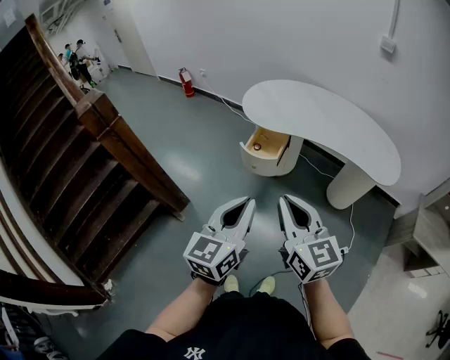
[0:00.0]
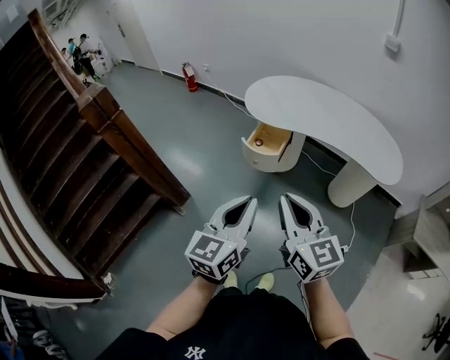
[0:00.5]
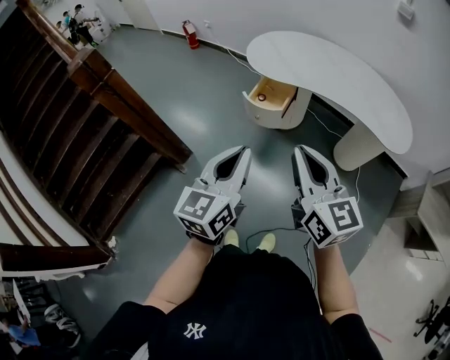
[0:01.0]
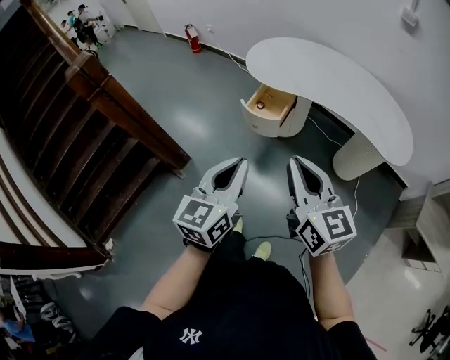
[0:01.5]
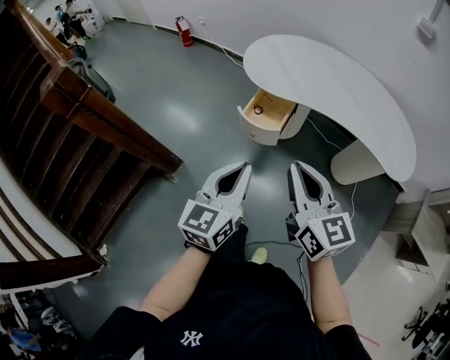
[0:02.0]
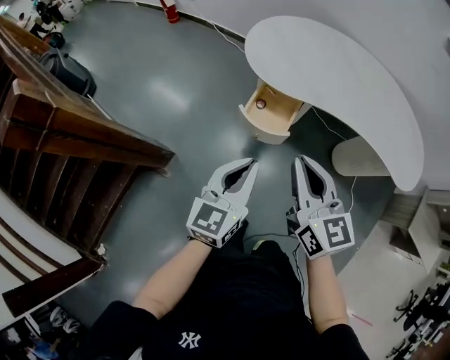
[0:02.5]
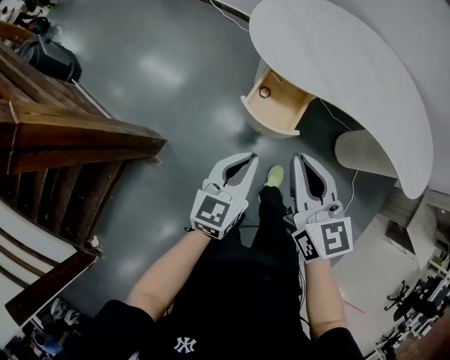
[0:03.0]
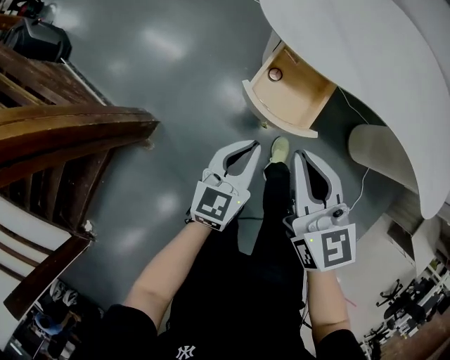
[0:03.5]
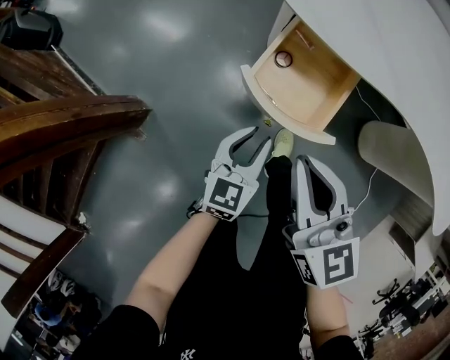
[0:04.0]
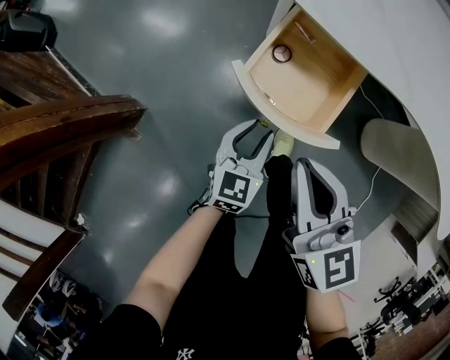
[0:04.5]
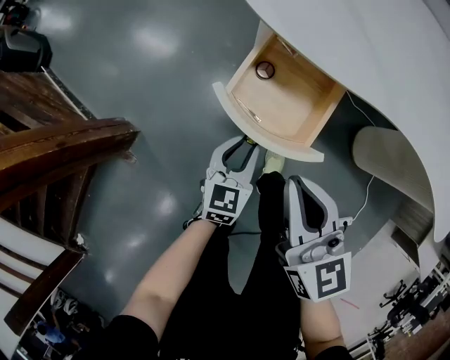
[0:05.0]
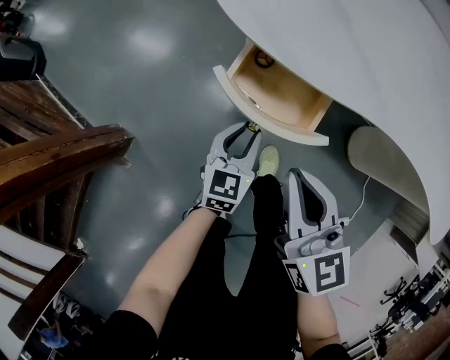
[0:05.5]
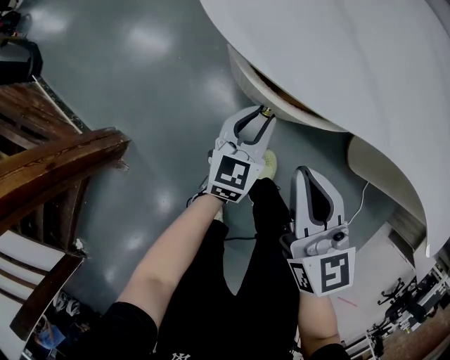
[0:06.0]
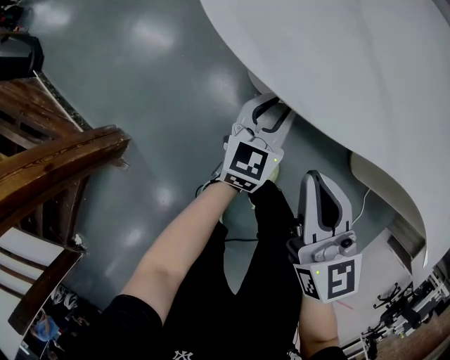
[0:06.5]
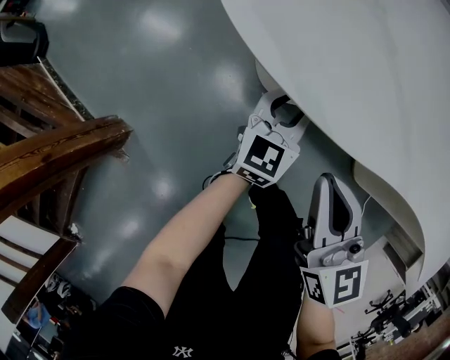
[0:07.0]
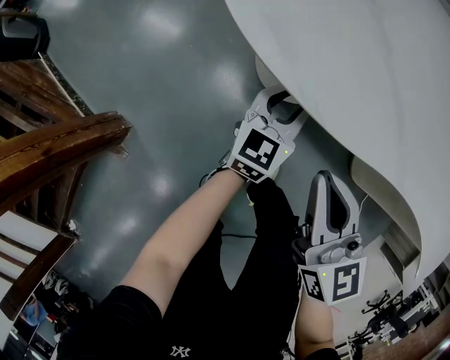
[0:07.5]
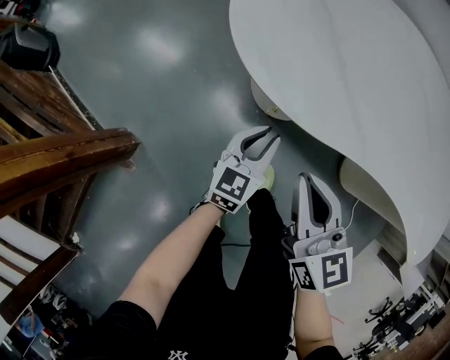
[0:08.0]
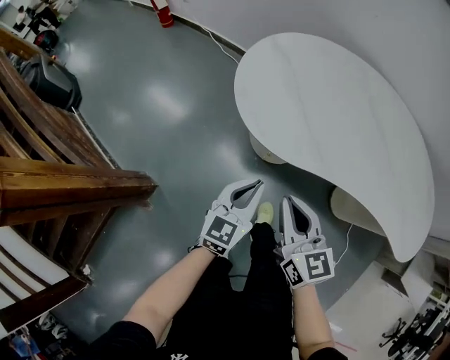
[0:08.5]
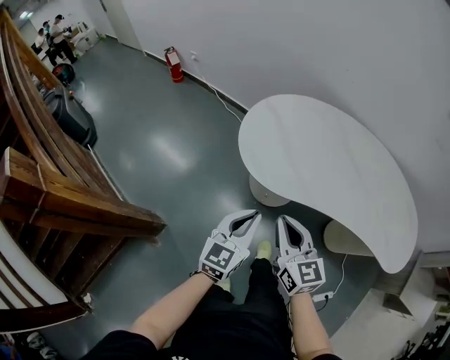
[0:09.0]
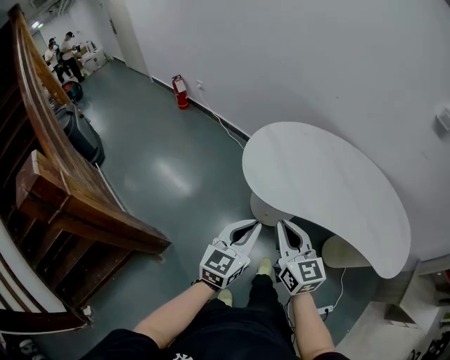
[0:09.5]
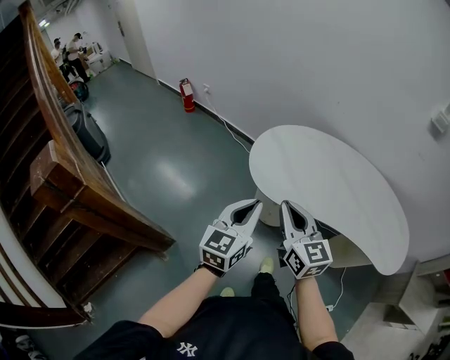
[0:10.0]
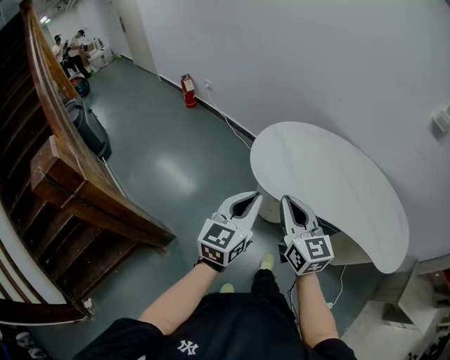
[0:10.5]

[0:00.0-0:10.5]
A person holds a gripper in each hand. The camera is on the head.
0:00.0 to 0:02.0: The right gripper shifts some 15 cm forward. The left gripper is displaced forward and downward by roughly 15 cm.
0:02.0 to 0:04.0: The grippers both shift downward and forward by approximately 50 cm. The left gripper opens up.
0:04.0 to 0:06.5: The left gripper moves forward and to the right, some 25 cm. Meanwhile the right gripper moves forward, to the right and downward, some 15 cm.
0:06.5 to 0:08.5: The right gripper shifts about 15 cm upward; the left gripper heads upward and backward, covering some 25 cm, and closes.
0:08.5 to 0:10.5: Both grippers move upward, roughly 30 cm.

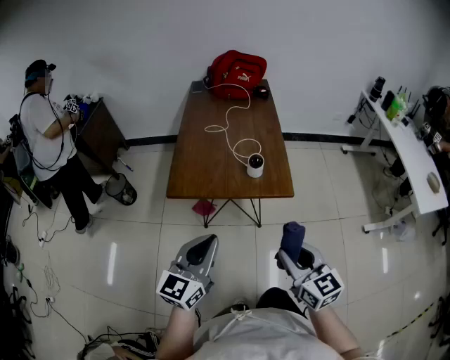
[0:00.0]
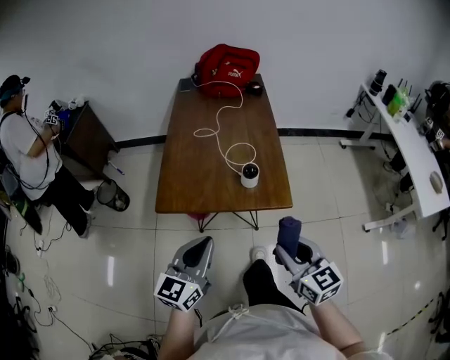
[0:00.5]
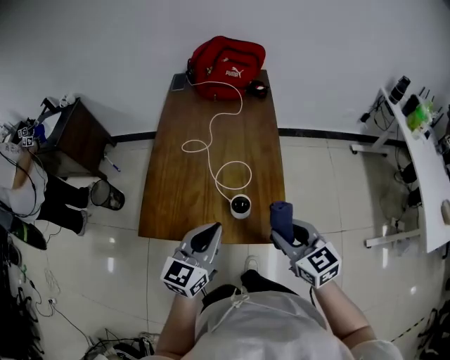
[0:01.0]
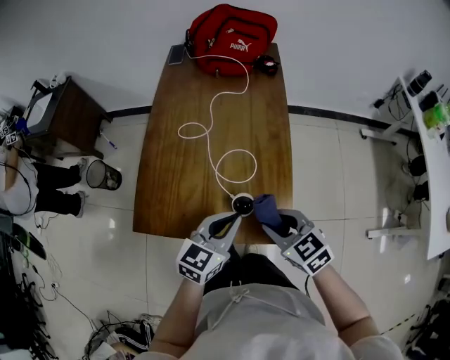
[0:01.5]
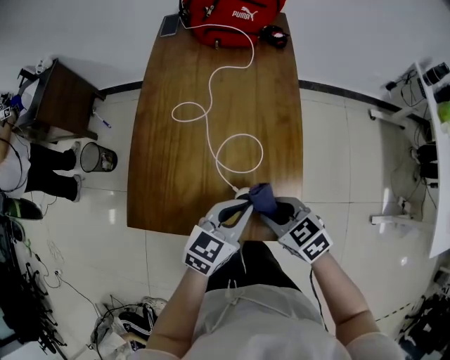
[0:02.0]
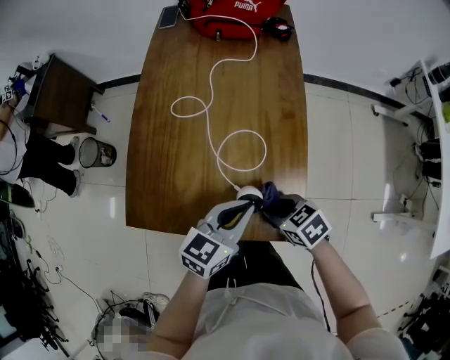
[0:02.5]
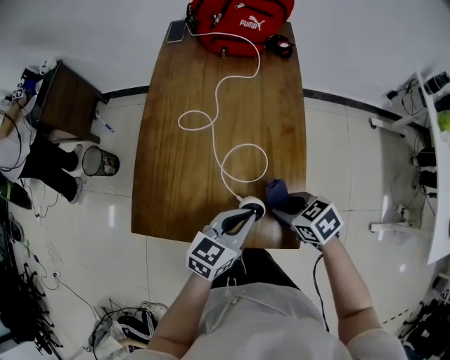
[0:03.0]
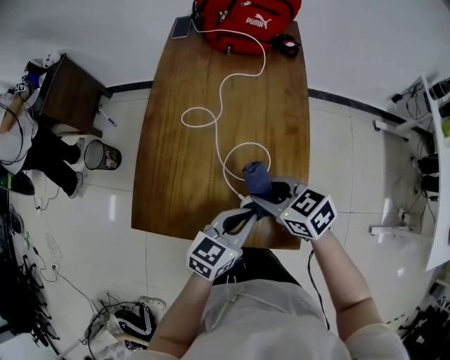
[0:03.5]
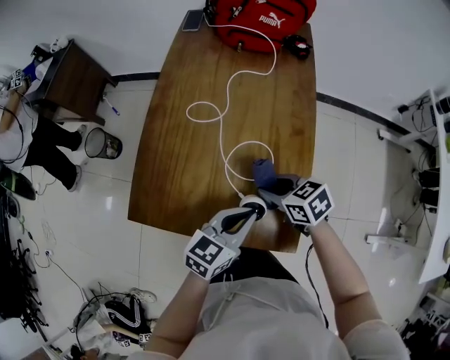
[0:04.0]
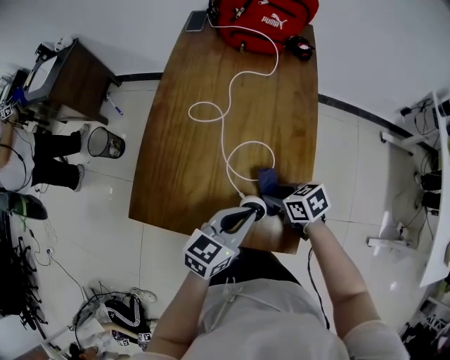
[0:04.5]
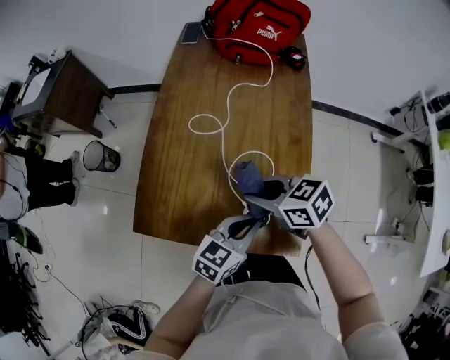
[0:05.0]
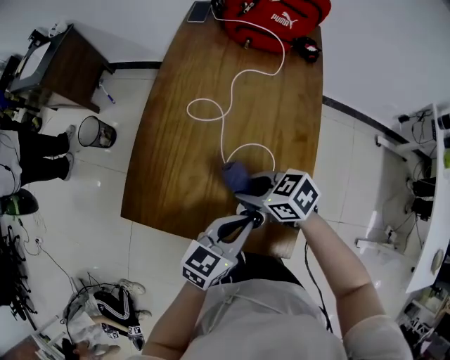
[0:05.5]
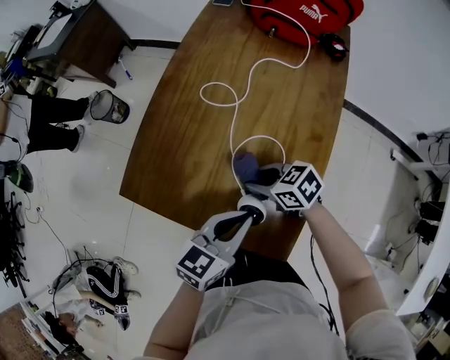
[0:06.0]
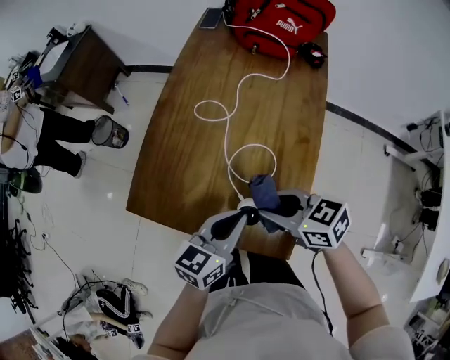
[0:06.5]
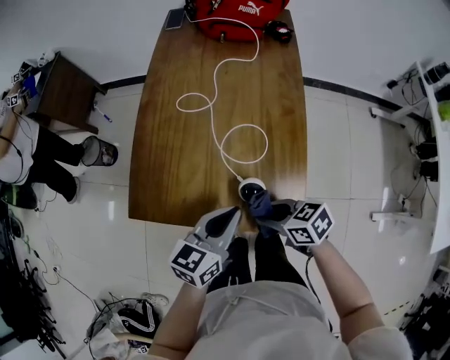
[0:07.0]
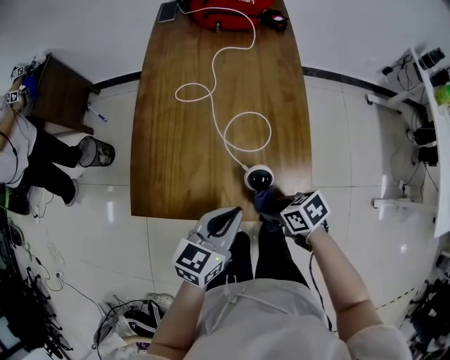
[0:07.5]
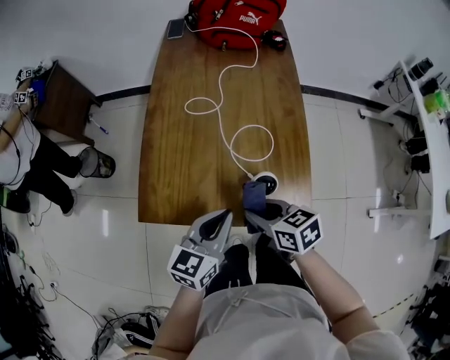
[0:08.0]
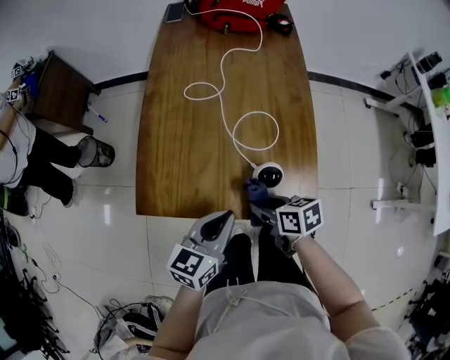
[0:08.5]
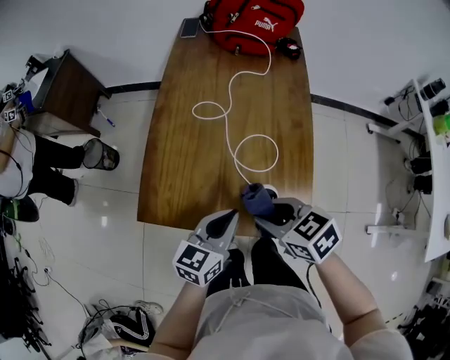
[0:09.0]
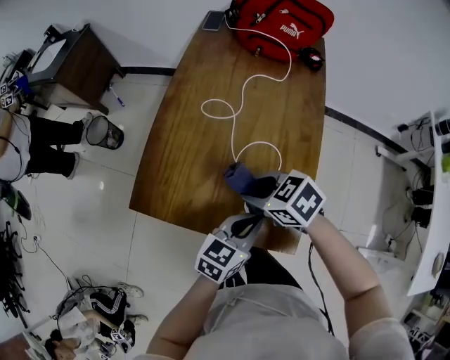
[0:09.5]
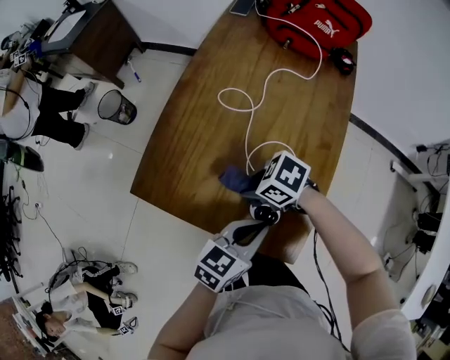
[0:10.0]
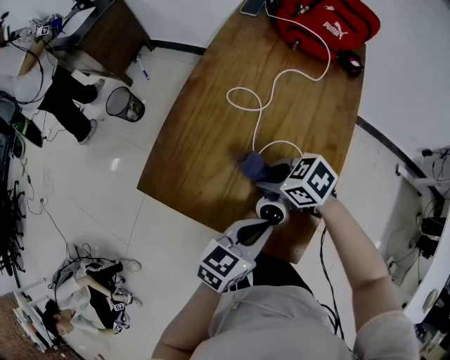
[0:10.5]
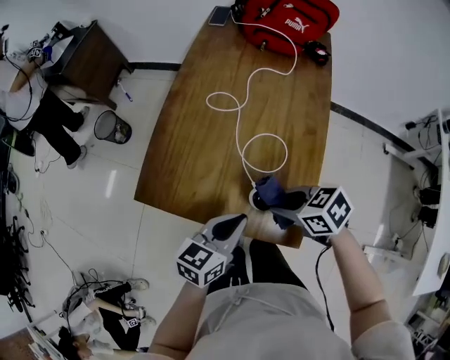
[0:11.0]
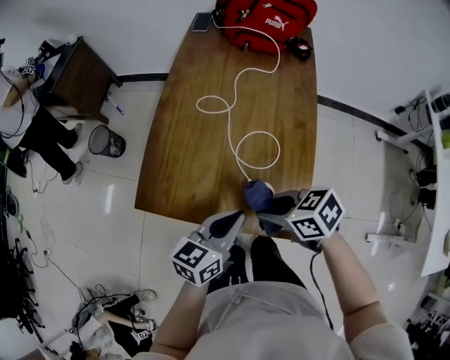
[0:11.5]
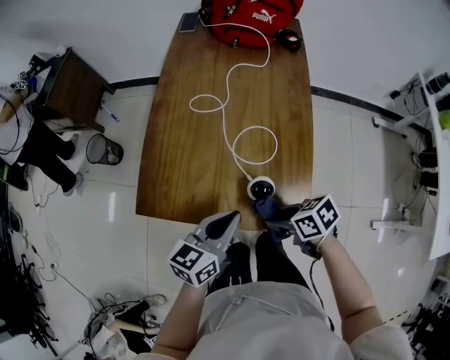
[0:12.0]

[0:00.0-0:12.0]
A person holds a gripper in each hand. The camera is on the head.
0:00.0 to 0:02.0: The right gripper is displaced forward and downward by roughly 40 cm, and changes its angle by some 40 degrees. Meanwhile the left gripper goes some 40 cm forward, to the right and downward, and changes its angle by approximately 30 degrees.
0:02.0 to 0:04.0: The right gripper moves up and down over roughly 10 cm, changing direction 2 times.
0:04.0 to 0:06.0: The right gripper moves up and down over approximately 15 cm, changing direction 2 times, and swivels some 20 degrees.
0:06.0 to 0:08.0: The left gripper changes place by about 10 cm. The right gripper moves up and down over some 15 cm, changing direction 2 times, and rotates approximately 40 degrees.
0:08.0 to 0:10.0: The right gripper goes up and down, approximately 10 cm each way, reversing 2 times, and swivels roughly 60 degrees. Meanwhile the left gripper moves about 15 cm.
0:10.0 to 0:12.0: The left gripper shifts by some 10 cm. Meanwhile the right gripper reaches approximately 10 cm upward, then returns, and rotates approximately 50 degrees.

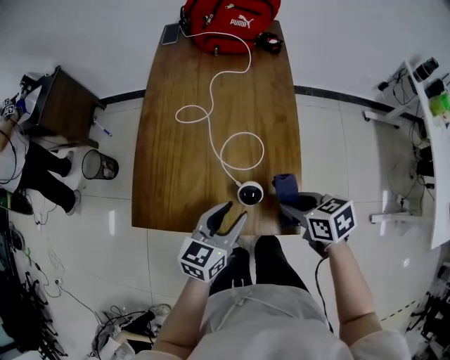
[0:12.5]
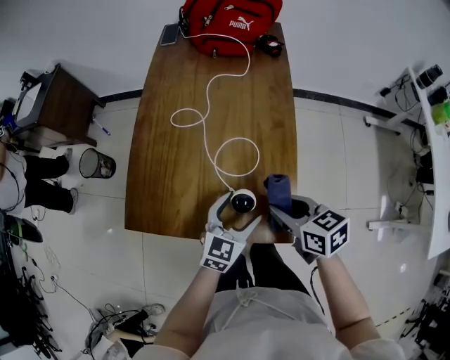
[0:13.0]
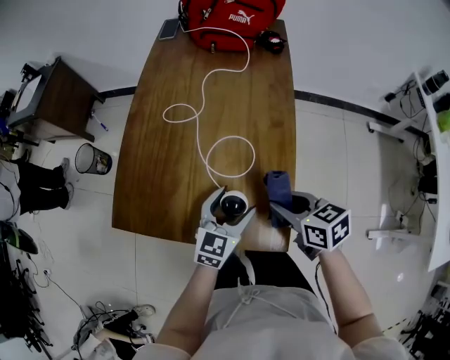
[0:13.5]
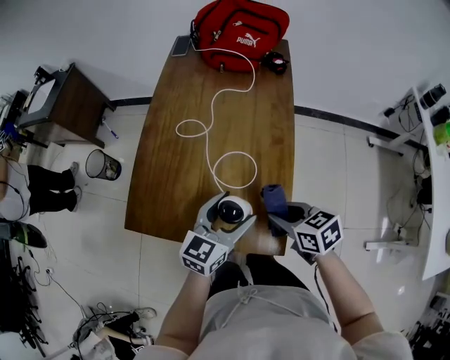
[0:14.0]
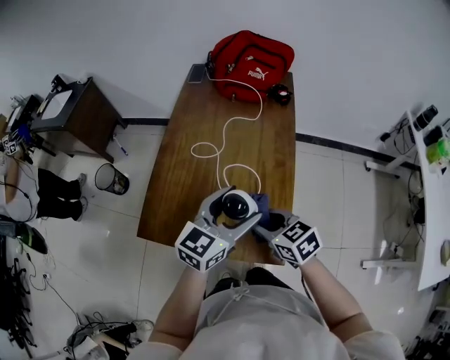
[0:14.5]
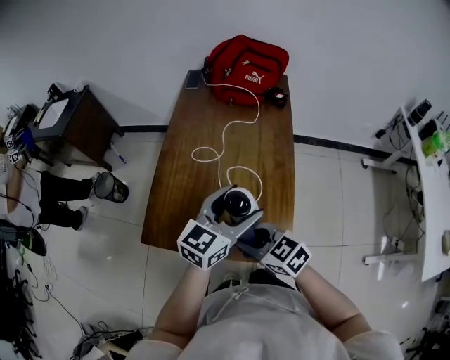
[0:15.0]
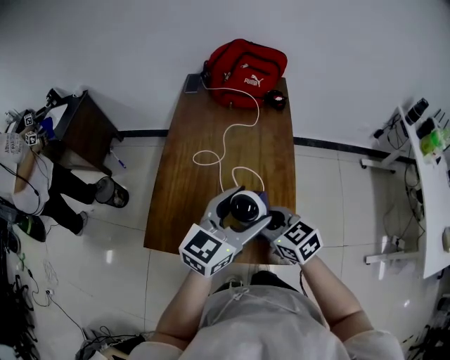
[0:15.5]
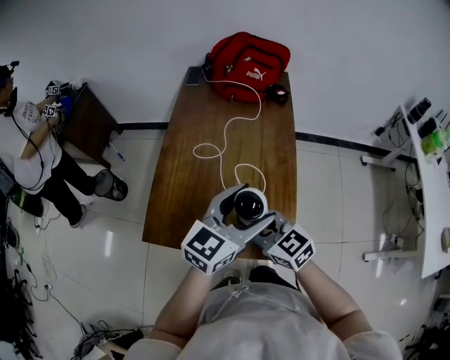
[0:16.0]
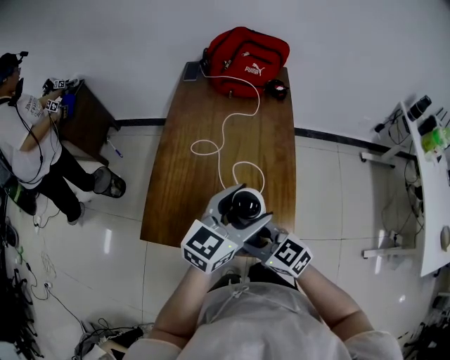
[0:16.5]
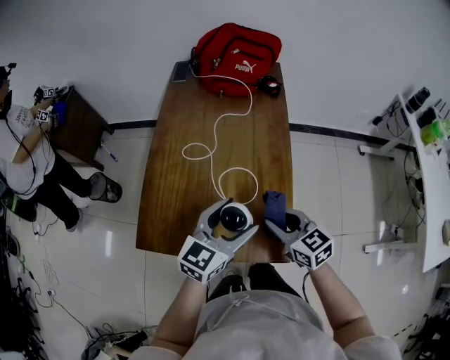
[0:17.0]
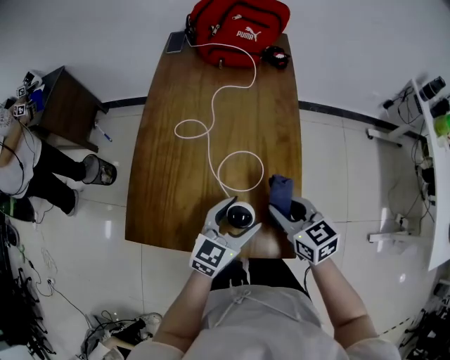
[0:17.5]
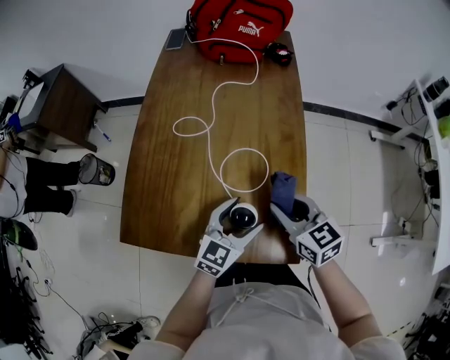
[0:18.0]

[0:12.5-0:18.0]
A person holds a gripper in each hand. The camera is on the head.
0:12.5 to 0:14.5: The left gripper travels upward and forward by roughly 15 cm, and opens its fingers, while the right gripper goes approximately 10 cm upward and to the left, and changes its angle by roughly 20 degrees.
0:14.5 to 0:16.0: The right gripper moves left and right over some 5 cm, changing direction 2 times.
0:16.0 to 0:18.0: The left gripper moves downward, roughly 25 cm, while the right gripper heads downward, to the right and forward, covering some 15 cm.
